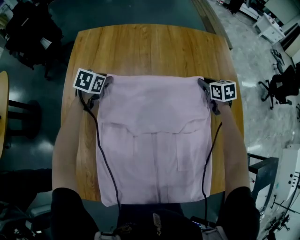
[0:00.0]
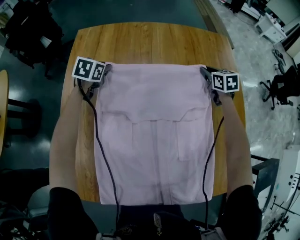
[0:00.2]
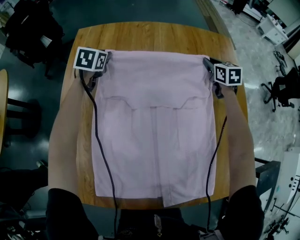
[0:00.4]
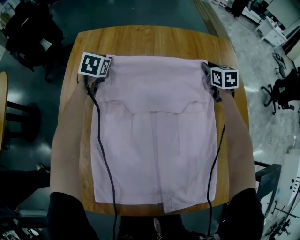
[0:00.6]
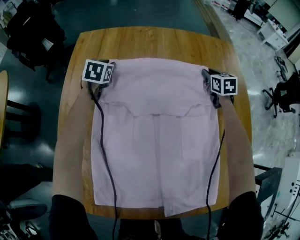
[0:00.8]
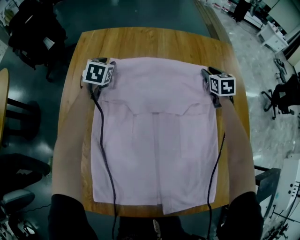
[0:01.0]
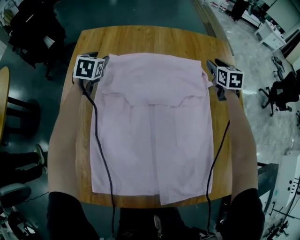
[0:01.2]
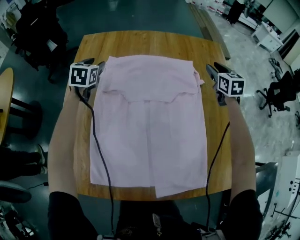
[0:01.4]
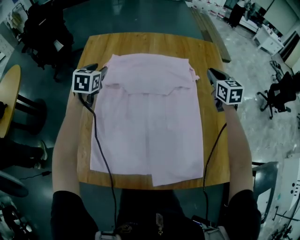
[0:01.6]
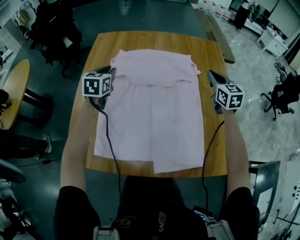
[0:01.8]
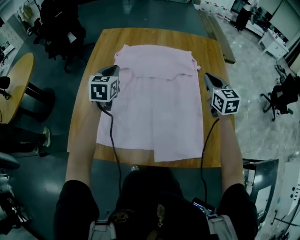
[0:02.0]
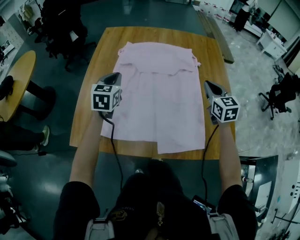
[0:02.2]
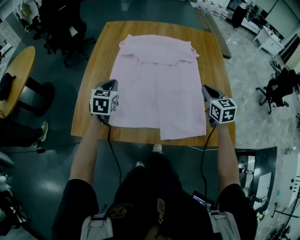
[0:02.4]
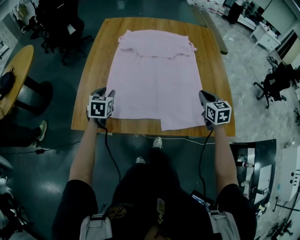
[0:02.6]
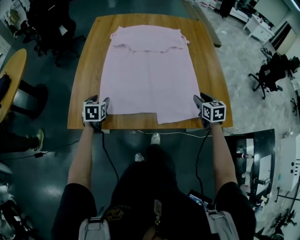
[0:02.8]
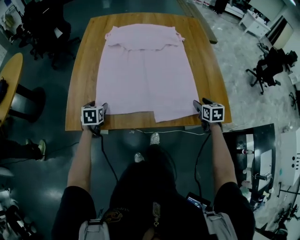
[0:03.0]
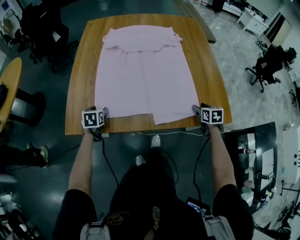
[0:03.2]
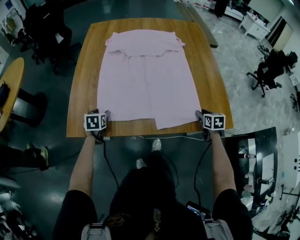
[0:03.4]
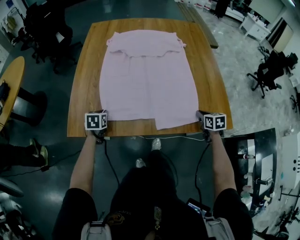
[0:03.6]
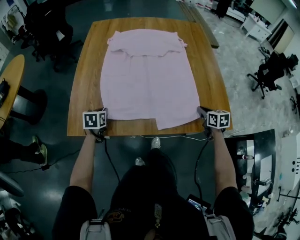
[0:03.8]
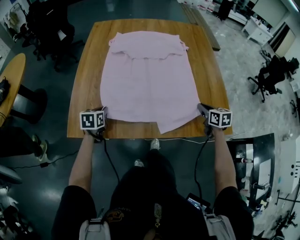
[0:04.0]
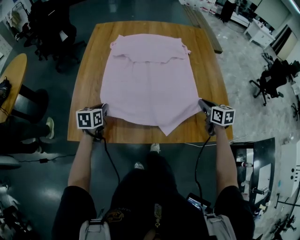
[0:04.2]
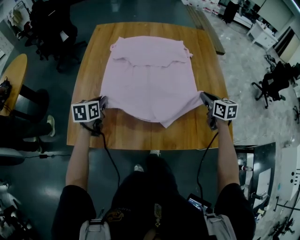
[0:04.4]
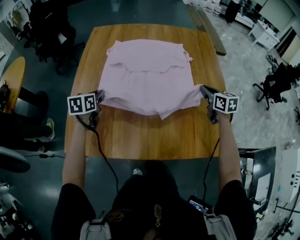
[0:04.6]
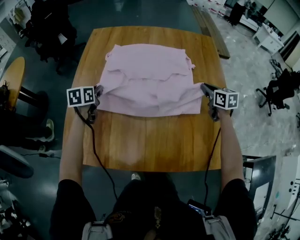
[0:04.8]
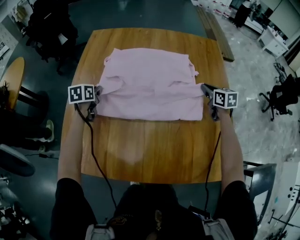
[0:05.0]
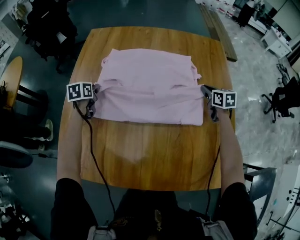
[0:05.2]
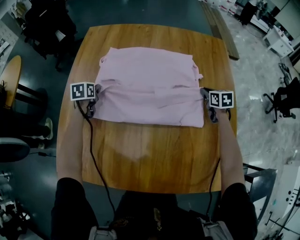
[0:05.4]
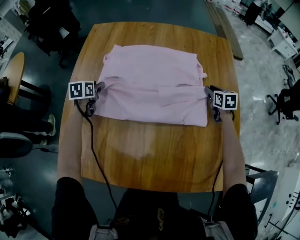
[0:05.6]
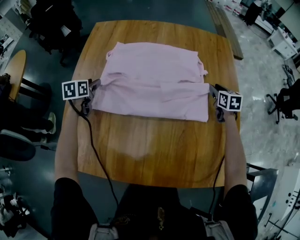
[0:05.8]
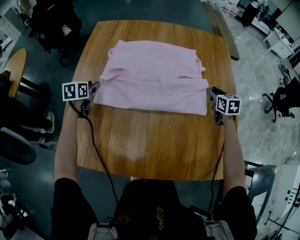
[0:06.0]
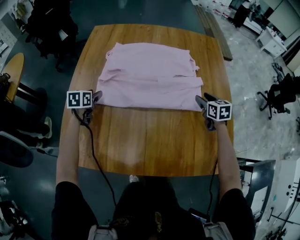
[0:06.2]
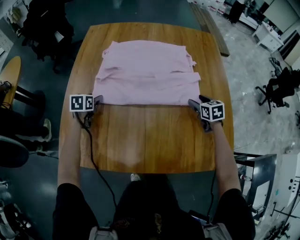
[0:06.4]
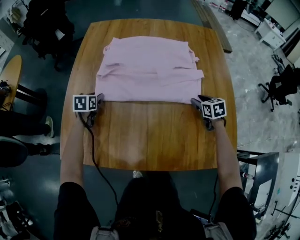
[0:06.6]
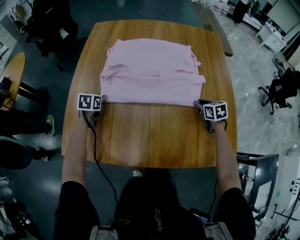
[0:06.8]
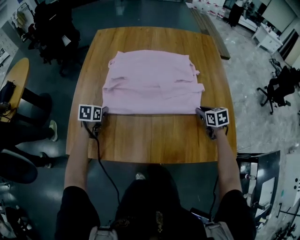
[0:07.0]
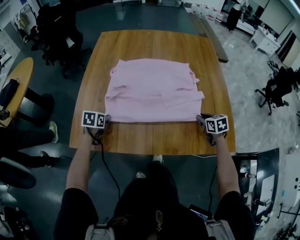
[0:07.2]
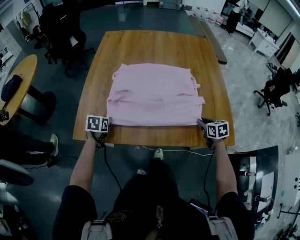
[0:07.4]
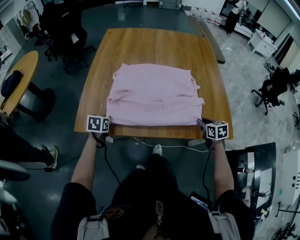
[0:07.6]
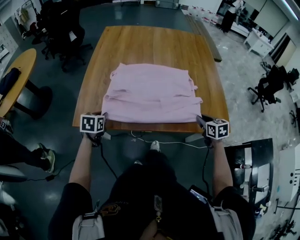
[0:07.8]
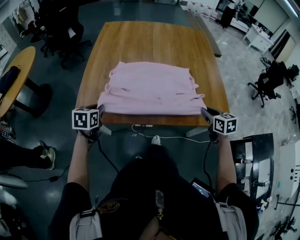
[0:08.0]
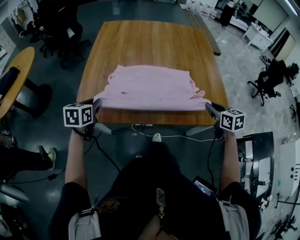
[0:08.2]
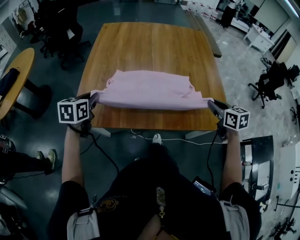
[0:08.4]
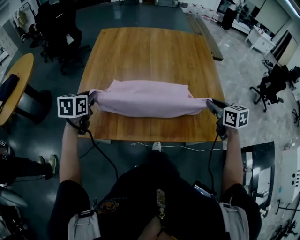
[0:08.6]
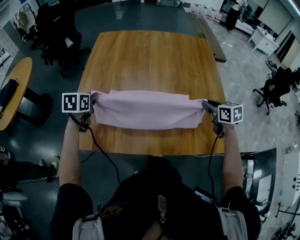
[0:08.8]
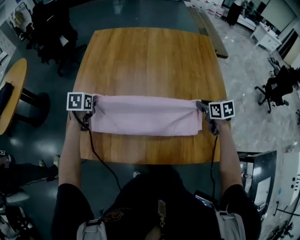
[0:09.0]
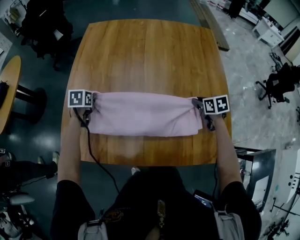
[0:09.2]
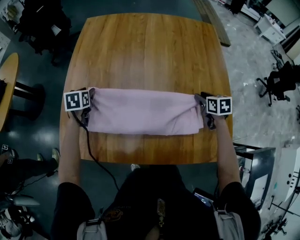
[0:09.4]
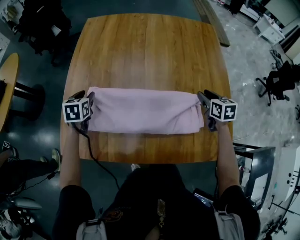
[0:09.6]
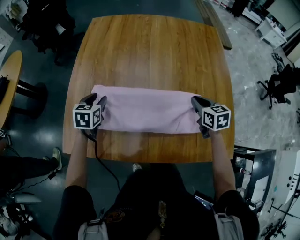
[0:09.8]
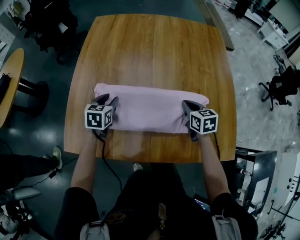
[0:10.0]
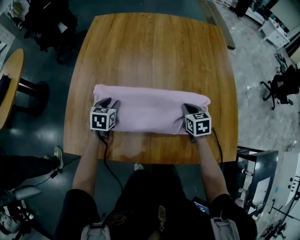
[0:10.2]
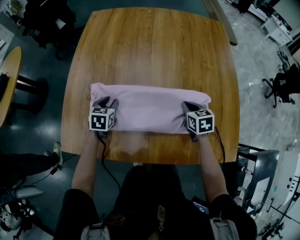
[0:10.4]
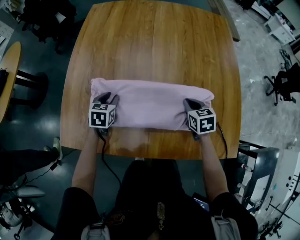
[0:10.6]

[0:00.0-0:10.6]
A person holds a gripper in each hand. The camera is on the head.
0:00.0 to 0:01.6: The left gripper heads upward and backward, covering approximately 15 cm, rotates approximately 30 degrees, and opens. Meanwhile the right gripper is displaced upward by about 15 cm, changes its angle by about 20 degrees, and opens, then closes once more.
0:01.6 to 0:03.0: Both grippers are carried backward, about 40 cm. The right gripper changes its angle by some 20 degrees, and opens its fingers; the left gripper closes, then opens again.
0:03.0 to 0:04.6: Both grippers travel together forward and upward, about 20 cm. The right gripper closes. Meanwhile the left gripper closes its fingers.
0:04.6 to 0:06.0: Both grippers travel together forward and downward, roughly 15 cm. The right gripper opens its fingers. The left gripper opens its fingers.
0:06.0 to 0:07.6: Both grippers travel together backward, roughly 35 cm. The left gripper closes its fingers. The right gripper opens and closes again.
0:07.6 to 0:09.0: The grippers both shift forward by about 20 cm.
0:09.0 to 0:10.6: The right gripper moves to the left and downward, roughly 10 cm. The left gripper shifts approximately 10 cm downward and to the right.

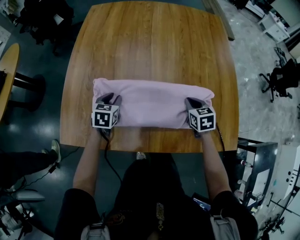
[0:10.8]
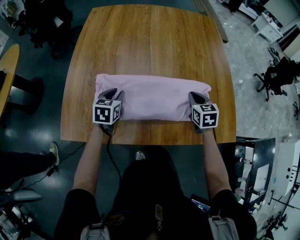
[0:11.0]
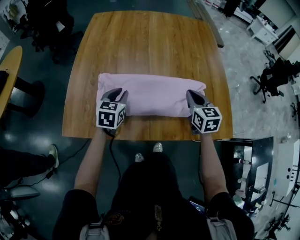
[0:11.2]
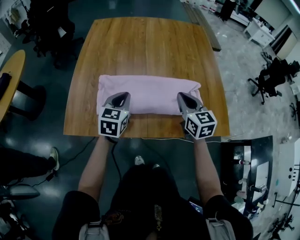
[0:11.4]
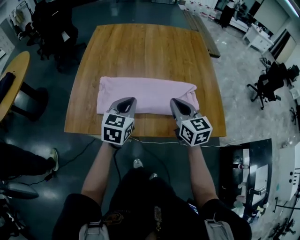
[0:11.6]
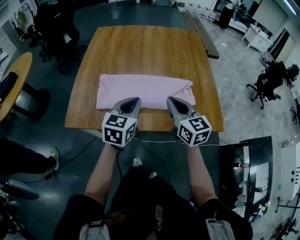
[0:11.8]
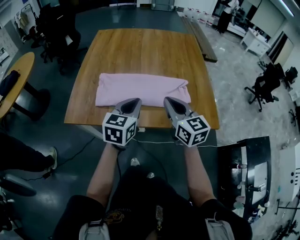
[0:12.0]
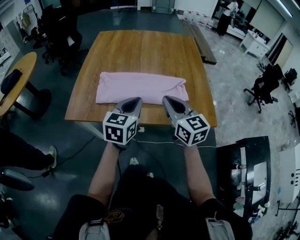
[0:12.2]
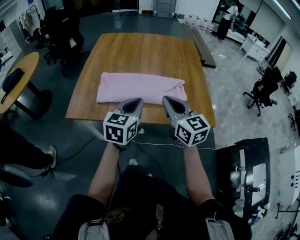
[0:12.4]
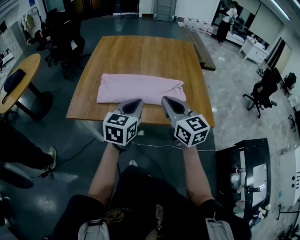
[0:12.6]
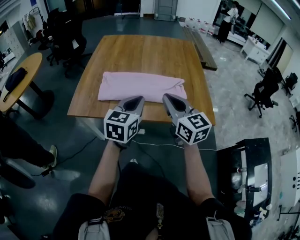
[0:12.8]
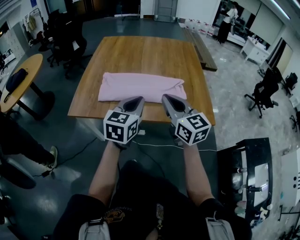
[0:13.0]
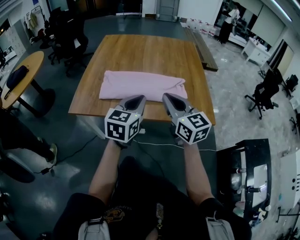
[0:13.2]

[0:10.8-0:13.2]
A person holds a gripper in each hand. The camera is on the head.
0:10.8 to 0:12.0: The left gripper goes some 35 cm upward, backward and to the right, swivels about 30 degrees, and closes up; the right gripper heads upward and backward, covering some 35 cm, and tilts its fingers roughly 40 degrees upward.
0:12.0 to 0:13.2: The left gripper is displaced backward by approximately 10 cm. The right gripper travels backward and upward by about 10 cm.

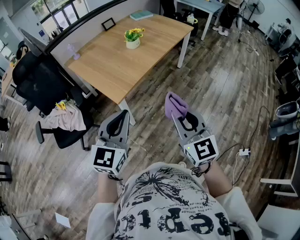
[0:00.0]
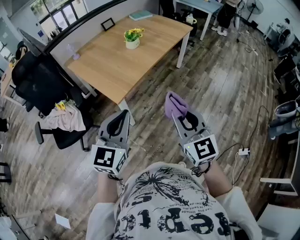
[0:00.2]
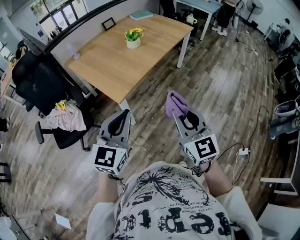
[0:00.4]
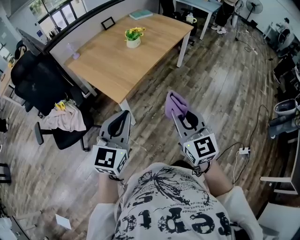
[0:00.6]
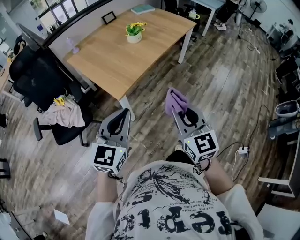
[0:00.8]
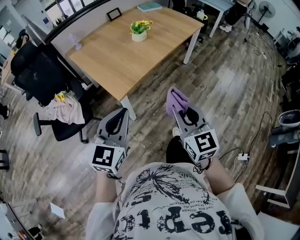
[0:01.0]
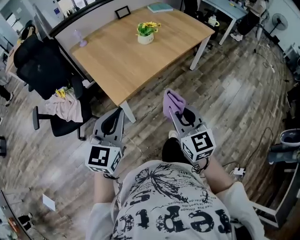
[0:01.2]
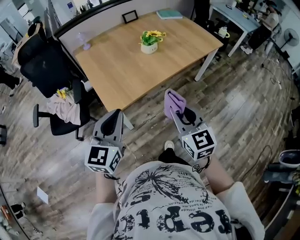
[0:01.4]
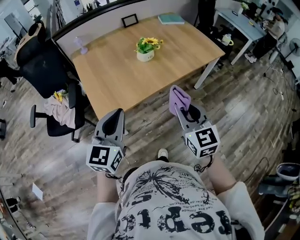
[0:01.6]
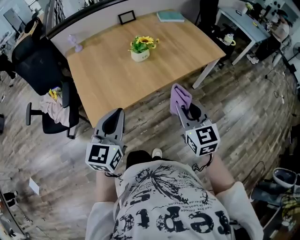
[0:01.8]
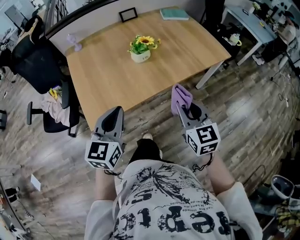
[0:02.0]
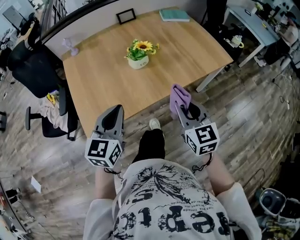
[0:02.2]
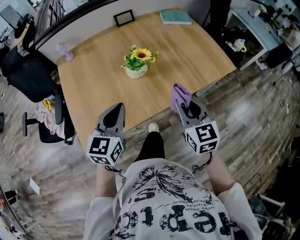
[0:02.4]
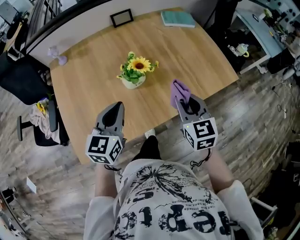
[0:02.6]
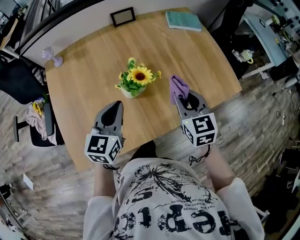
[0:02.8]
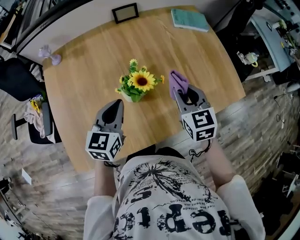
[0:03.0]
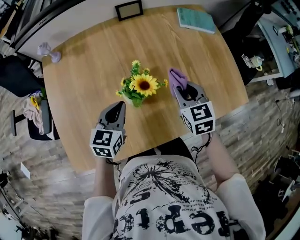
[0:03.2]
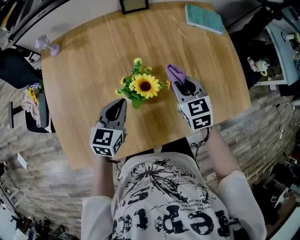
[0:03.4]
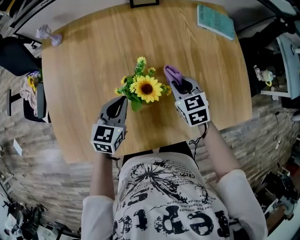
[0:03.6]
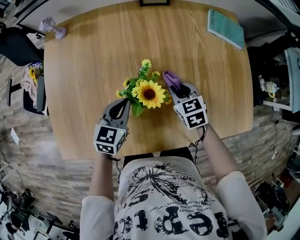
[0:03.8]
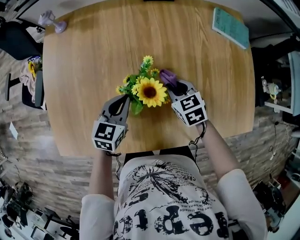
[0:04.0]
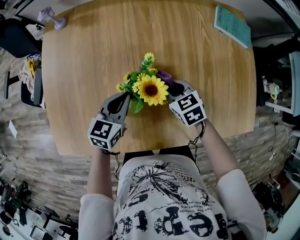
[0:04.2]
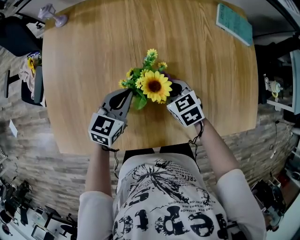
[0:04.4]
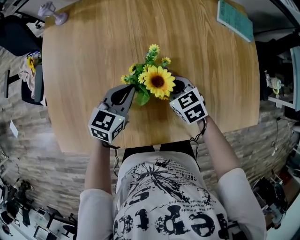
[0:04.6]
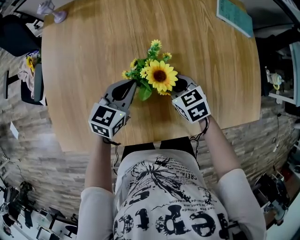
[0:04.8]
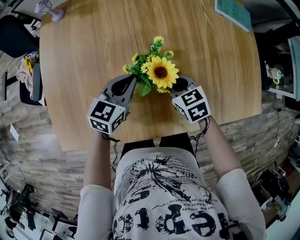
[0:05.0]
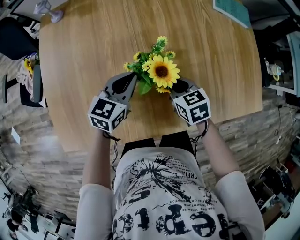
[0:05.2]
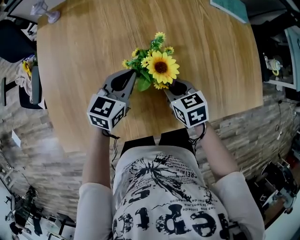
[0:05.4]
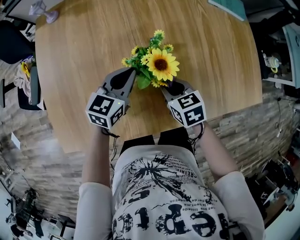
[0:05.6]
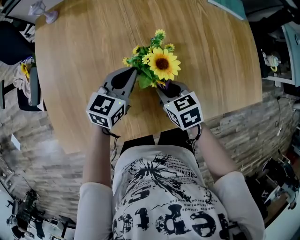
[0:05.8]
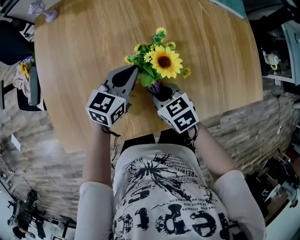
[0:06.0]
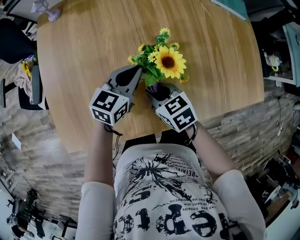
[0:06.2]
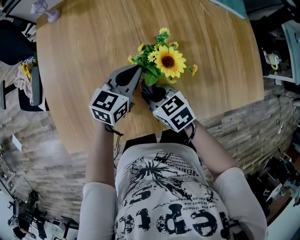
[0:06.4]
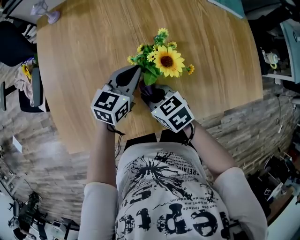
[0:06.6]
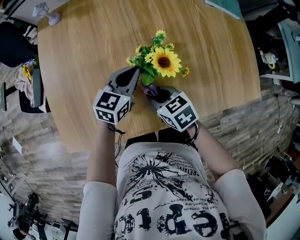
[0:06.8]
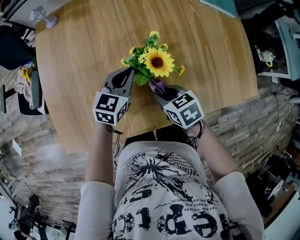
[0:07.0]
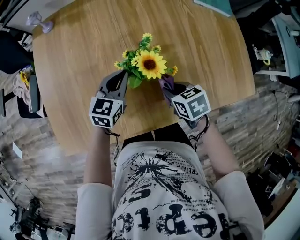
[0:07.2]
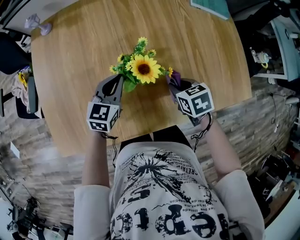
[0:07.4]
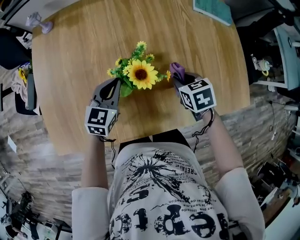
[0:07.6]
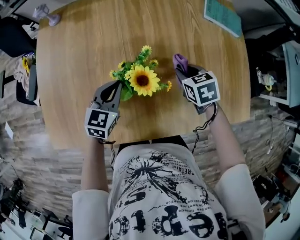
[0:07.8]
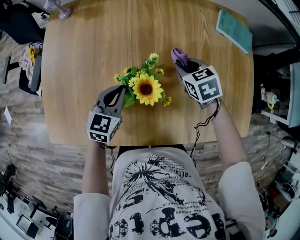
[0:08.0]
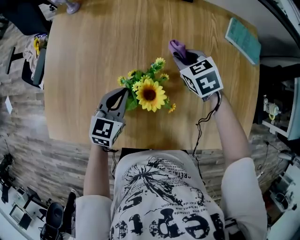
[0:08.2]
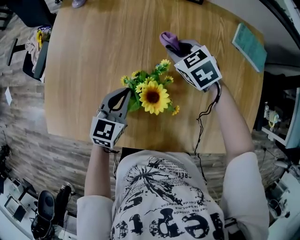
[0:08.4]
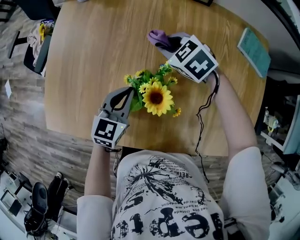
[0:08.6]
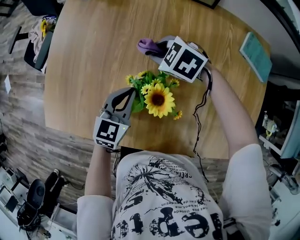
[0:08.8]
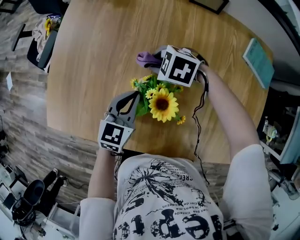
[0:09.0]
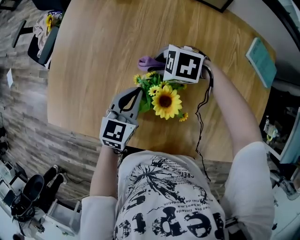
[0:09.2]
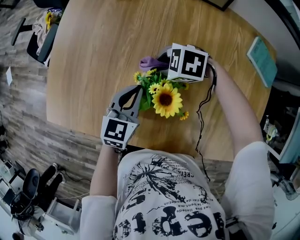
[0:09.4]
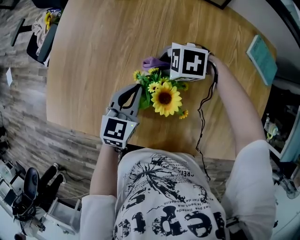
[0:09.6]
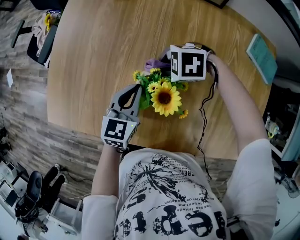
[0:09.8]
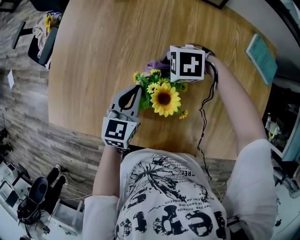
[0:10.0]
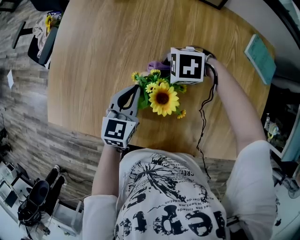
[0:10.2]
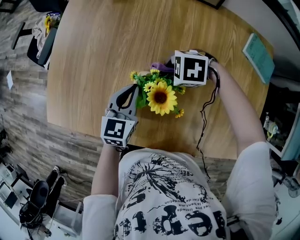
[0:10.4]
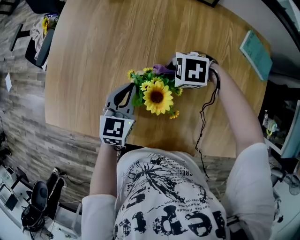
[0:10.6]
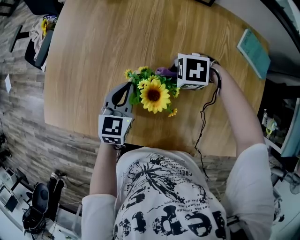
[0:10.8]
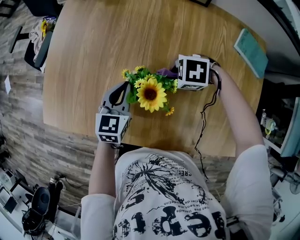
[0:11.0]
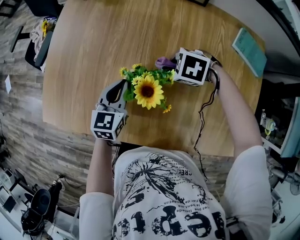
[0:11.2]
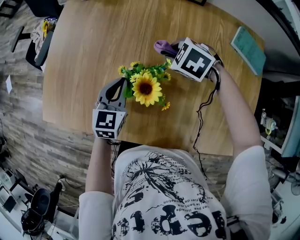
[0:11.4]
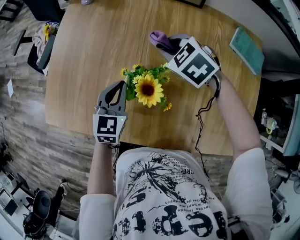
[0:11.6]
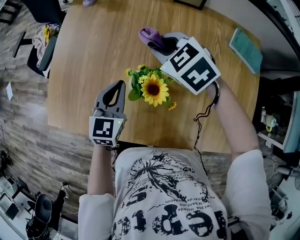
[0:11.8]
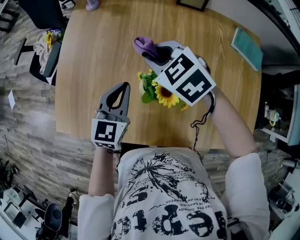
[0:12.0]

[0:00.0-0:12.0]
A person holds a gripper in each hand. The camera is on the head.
0:00.0 to 0:01.6: Both grippers travel together forward, about 25 cm. The left gripper turns by approximately 20 degrees.
0:01.6 to 0:03.0: The pair of grippers is taken forward, some 50 cm.
0:03.0 to 0:04.4: The right gripper shifts about 20 cm downward, and turns by some 40 degrees. Meanwhile the left gripper moves downward, some 10 cm.
0:04.4 to 0:06.0: The right gripper shifts about 10 cm backward and to the left.
0:06.0 to 0:07.6: The right gripper is displaced to the right by about 20 cm.
0:07.6 to 0:09.0: The right gripper ends up some 25 cm from where it was, and rotates around the line of its fingers by approximately 70 degrees, counterclockwise from behind.
0:09.0 to 0:10.4: The right gripper shifts by roughly 10 cm.
0:10.4 to 0:12.0: The left gripper heads upward, covering about 10 cm, while the right gripper is displaced upward by approximately 15 cm, and turns by about 50 degrees.
